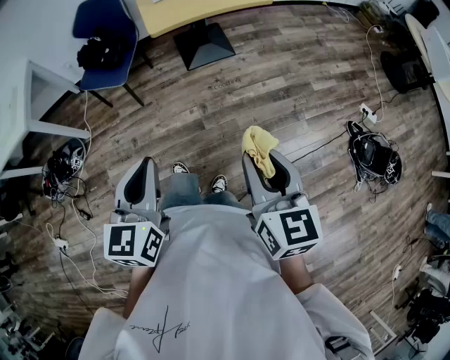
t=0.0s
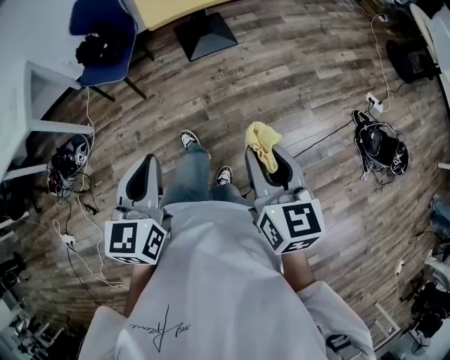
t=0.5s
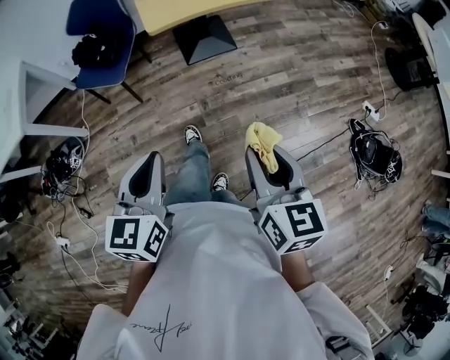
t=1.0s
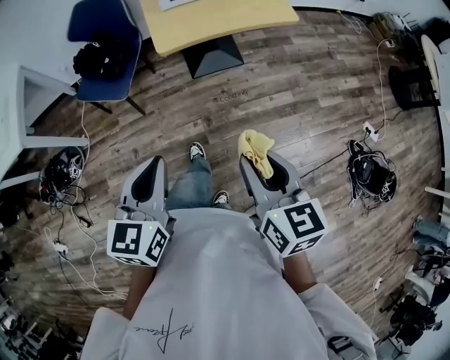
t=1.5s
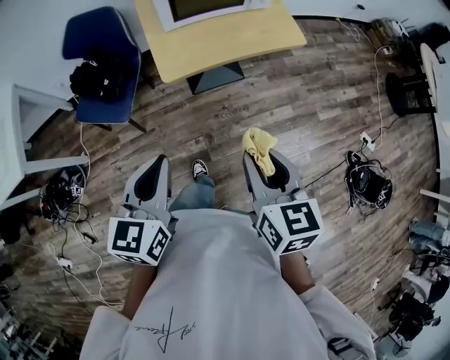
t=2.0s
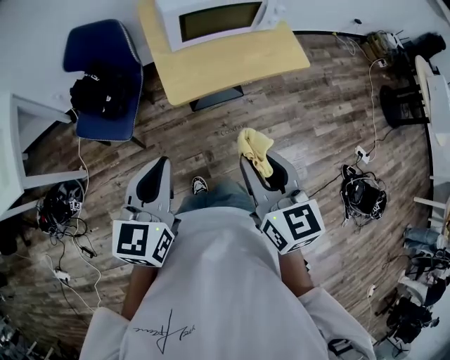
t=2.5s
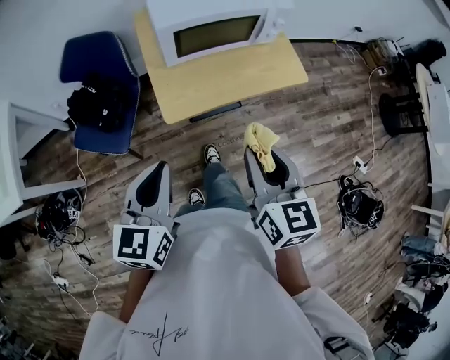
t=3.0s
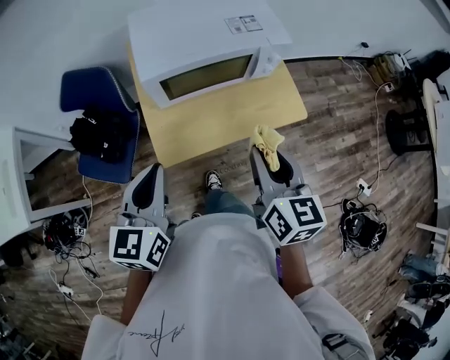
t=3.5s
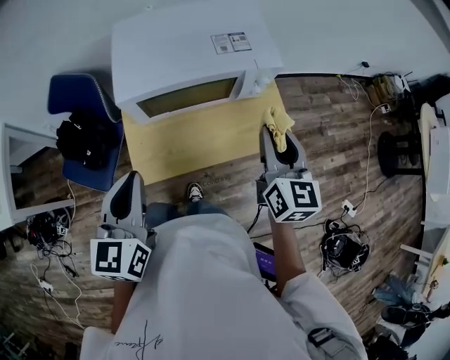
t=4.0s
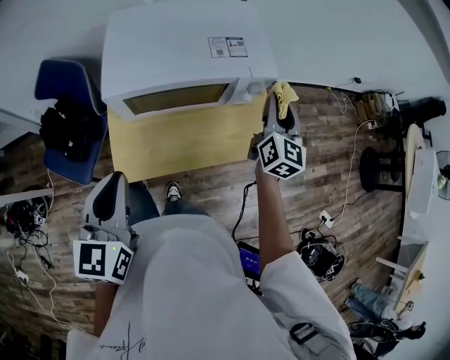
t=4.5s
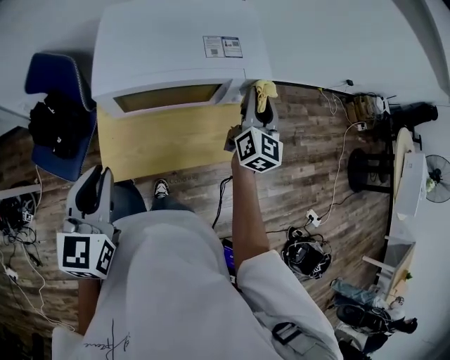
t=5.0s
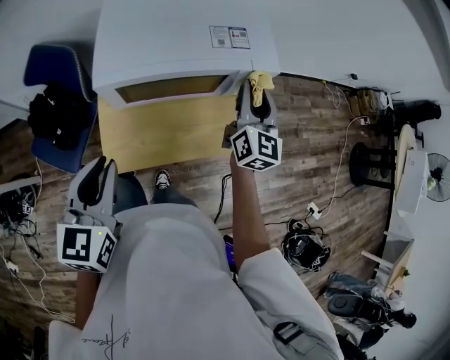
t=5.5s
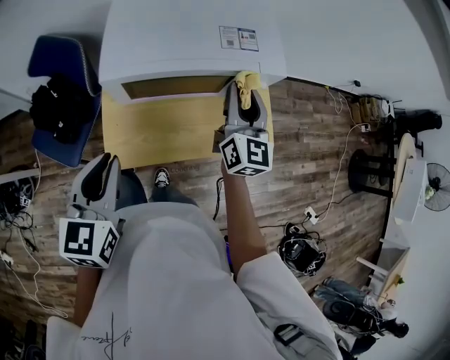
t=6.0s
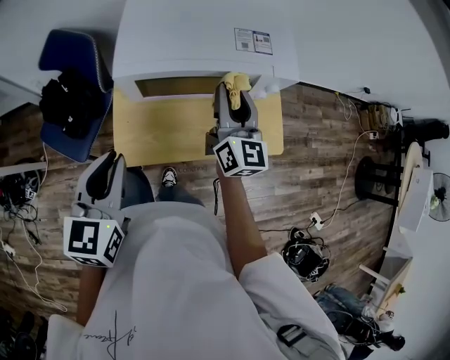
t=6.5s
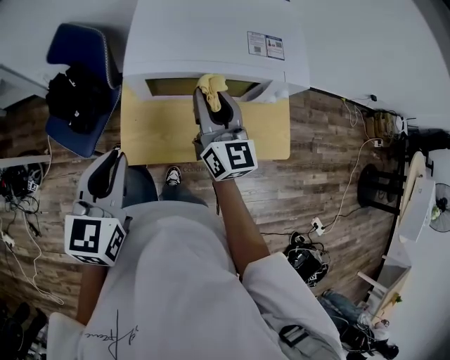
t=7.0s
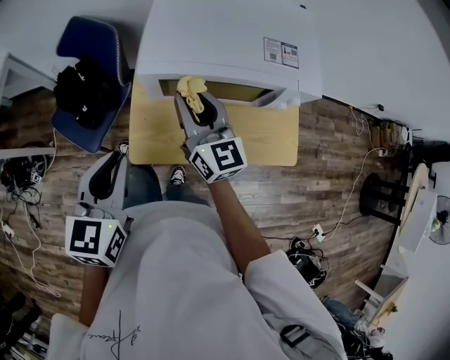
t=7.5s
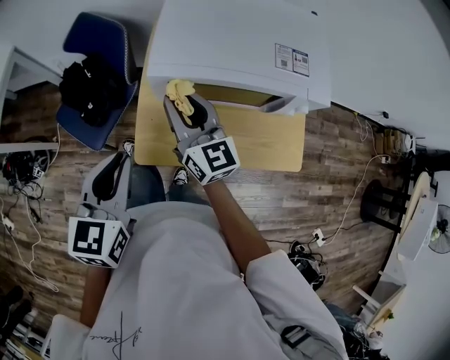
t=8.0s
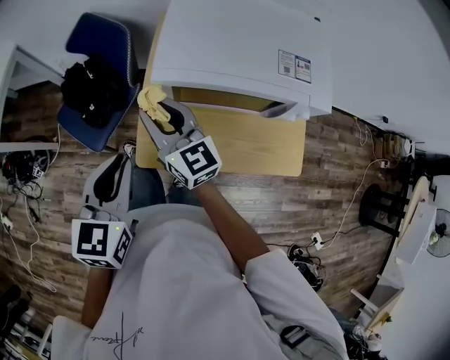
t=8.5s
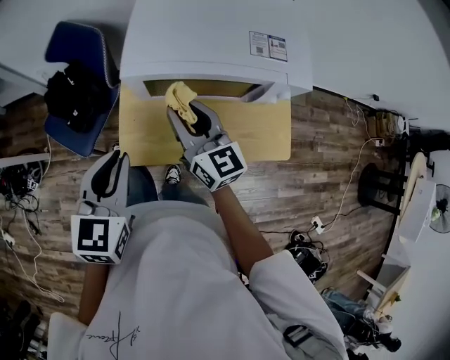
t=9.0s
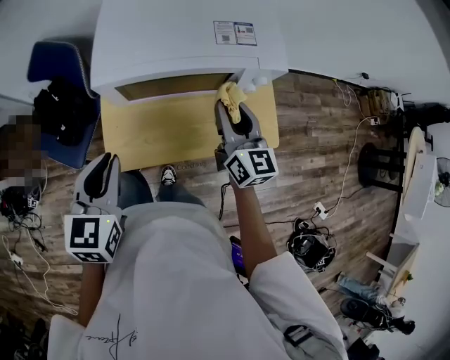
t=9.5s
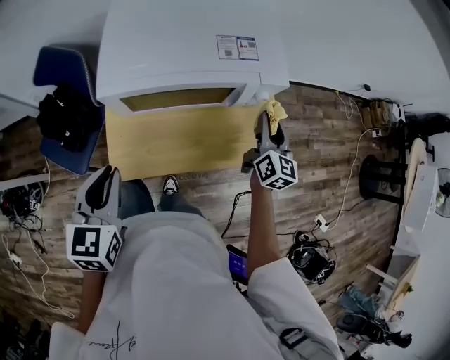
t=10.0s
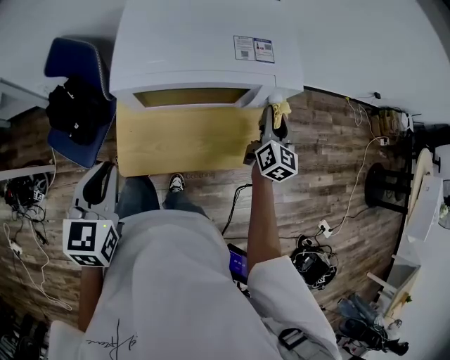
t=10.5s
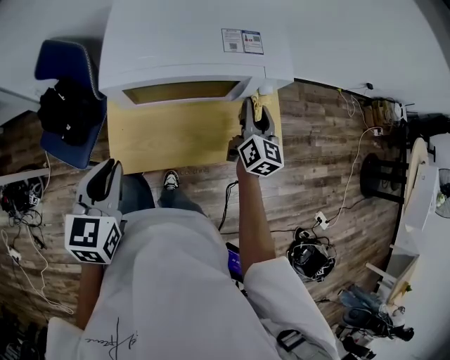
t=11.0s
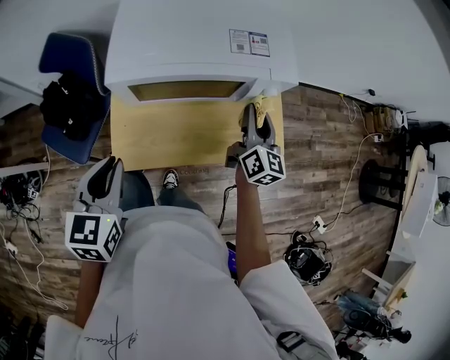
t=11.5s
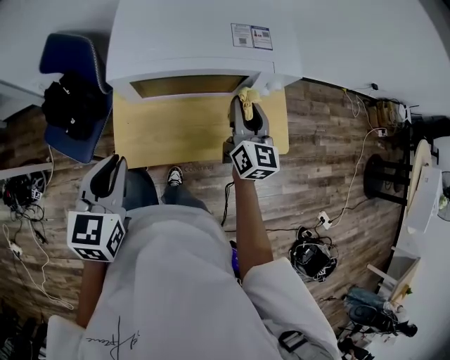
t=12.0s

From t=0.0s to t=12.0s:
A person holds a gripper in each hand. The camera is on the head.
From t=0.0s to t=2.0s: Both grippers travel together forward, approximately 30 cm.
From t=2.0s to t=4.0s: The two grippers go some 35 cm forward. The right gripper swivels some 20 degrees.
From t=4.0s to t=6.0s: The right gripper is displaced forward and to the left by roughly 15 cm.
From t=6.0s to t=8.0s: The right gripper moves to the left, about 25 cm, and swivels roughly 40 degrees; the left gripper goes roughly 5 cm to the left.
From t=8.0s to t=10.0s: The left gripper changes place by roughly 5 cm. The right gripper ends up some 35 cm from where it was, and changes its angle by roughly 40 degrees.
From t=10.0s to t=12.0s: The right gripper travels to the left by about 10 cm.

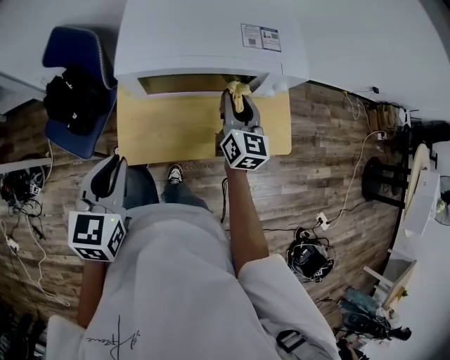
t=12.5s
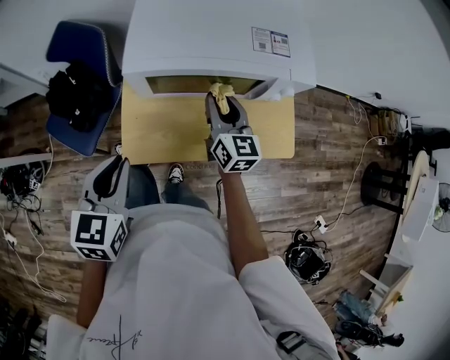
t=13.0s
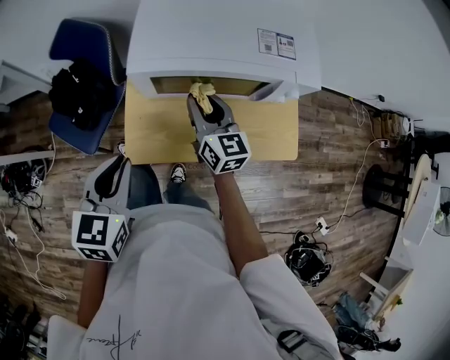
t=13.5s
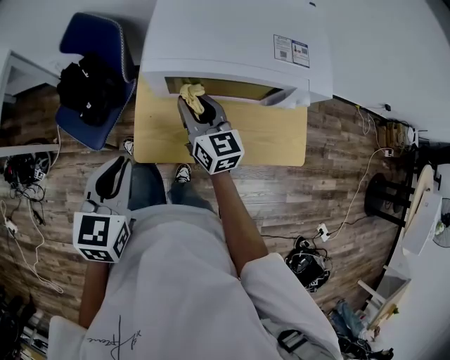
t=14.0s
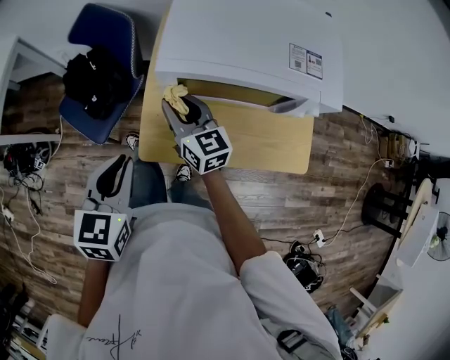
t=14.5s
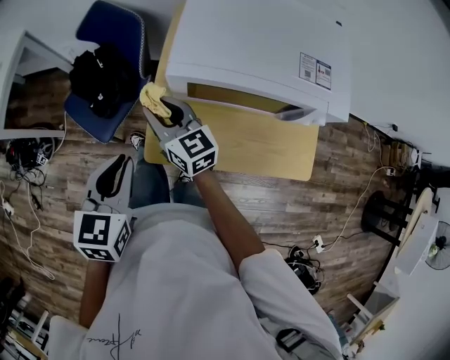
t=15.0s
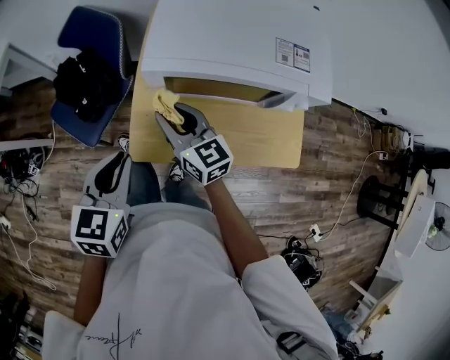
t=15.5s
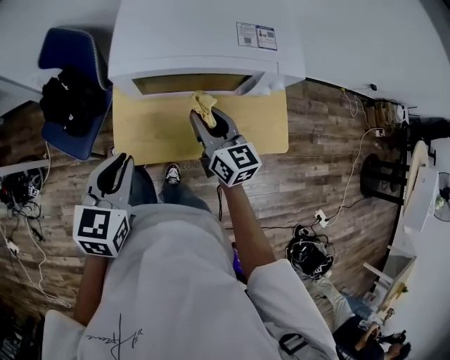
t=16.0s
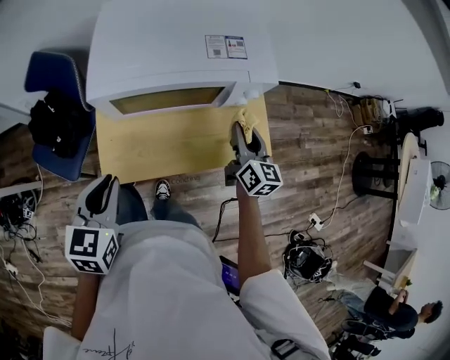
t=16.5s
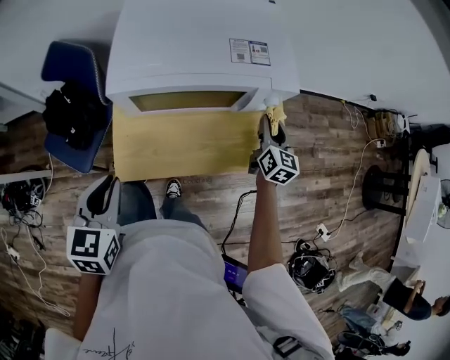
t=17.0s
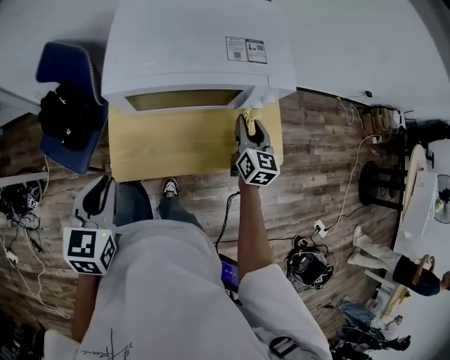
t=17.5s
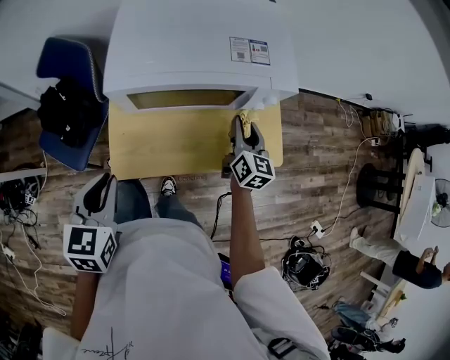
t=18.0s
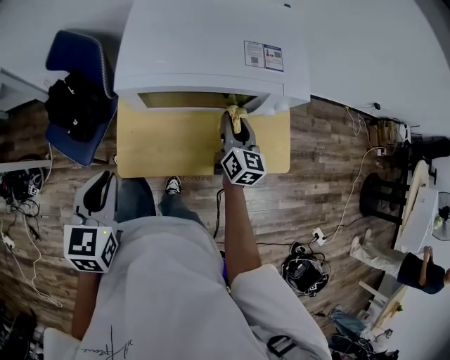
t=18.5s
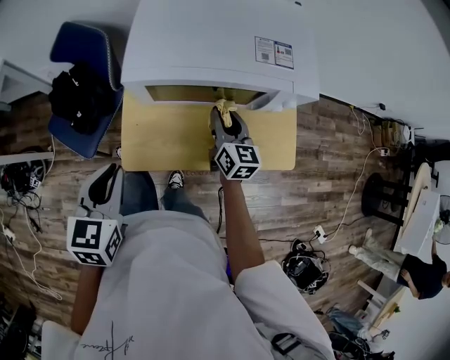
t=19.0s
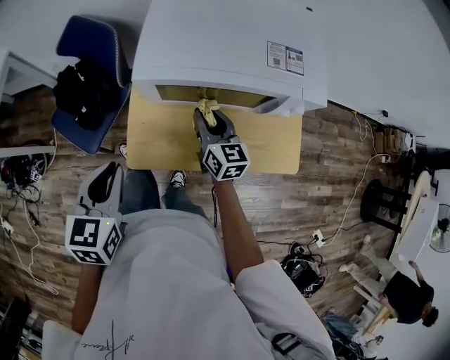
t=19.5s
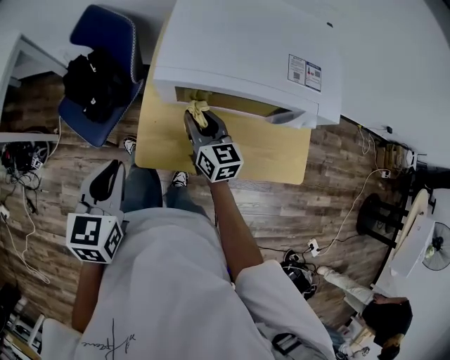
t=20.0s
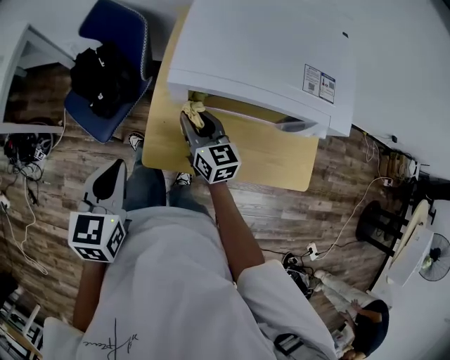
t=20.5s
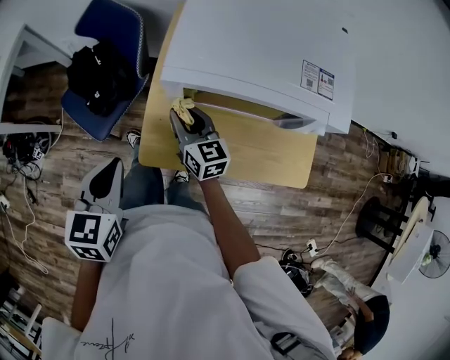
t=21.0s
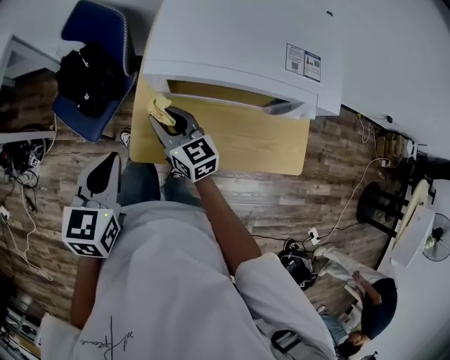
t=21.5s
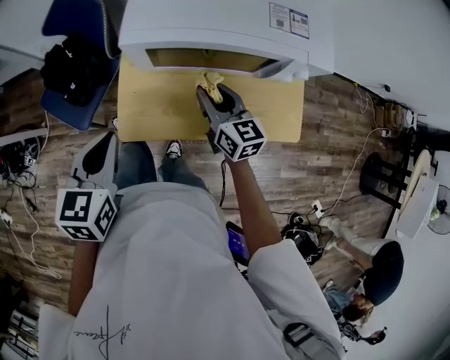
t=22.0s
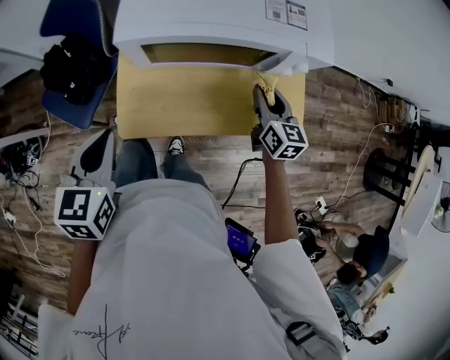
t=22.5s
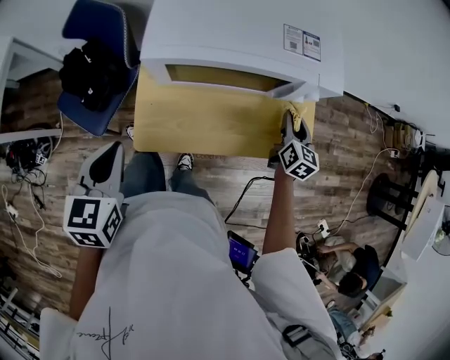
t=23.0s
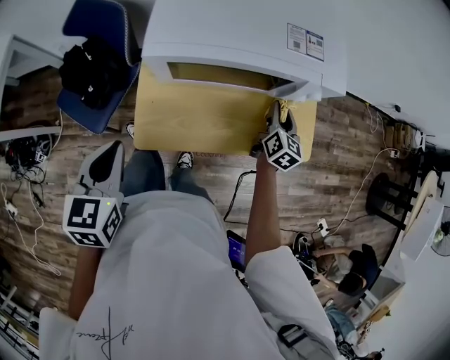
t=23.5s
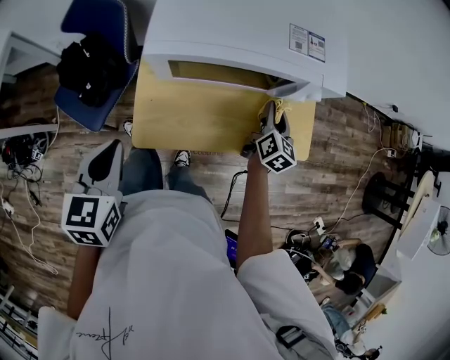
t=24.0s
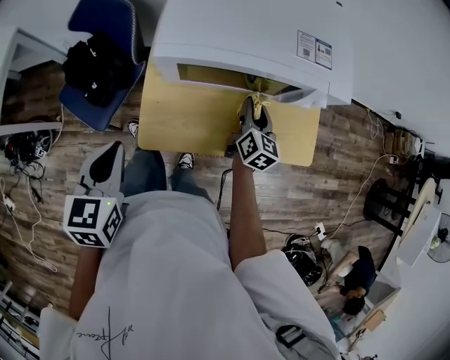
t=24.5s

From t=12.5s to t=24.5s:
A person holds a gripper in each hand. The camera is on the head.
From t=12.5s to t=14.5s: The left gripper shifts by about 5 cm. The right gripper moves to the left, approximately 25 cm, and swivels about 30 degrees.
From t=14.5s to t=16.5s: The right gripper changes place by about 35 cm, and turns by approximately 40 degrees, while the left gripper changes place by some 10 cm.
From t=16.5s to t=18.5s: The left gripper moves about 5 cm. The right gripper heads to the left, covering roughly 10 cm.
From t=18.5s to t=20.5s: The right gripper travels to the left by about 25 cm, and swivels some 30 degrees. The left gripper is displaced to the left by approximately 5 cm.
From t=20.5s to t=22.5s: The right gripper travels to the right by roughly 30 cm, and rotates some 20 degrees, while the left gripper travels to the right by roughly 5 cm.
From t=22.5s to t=24.5s: The right gripper travels to the left by some 10 cm.

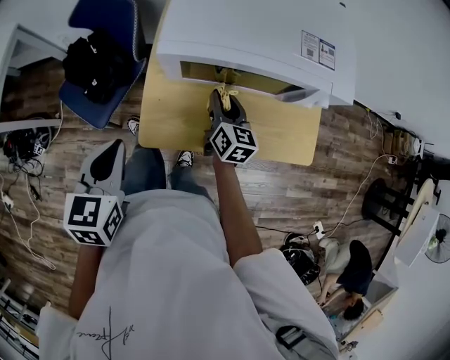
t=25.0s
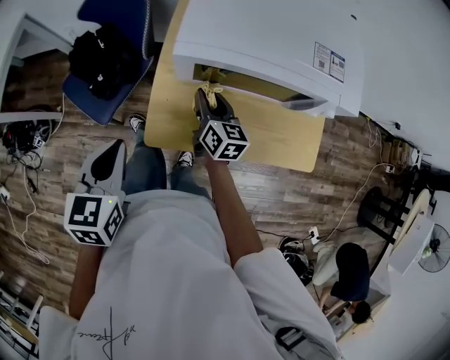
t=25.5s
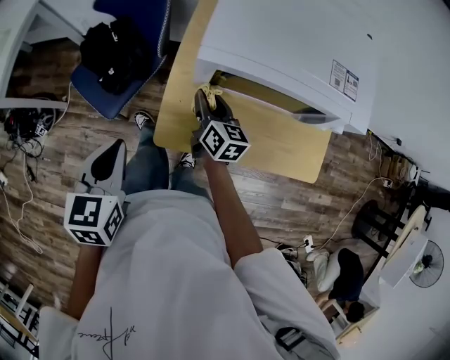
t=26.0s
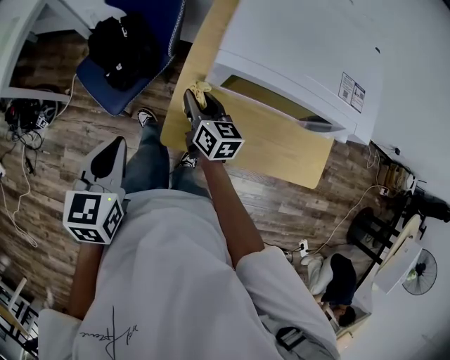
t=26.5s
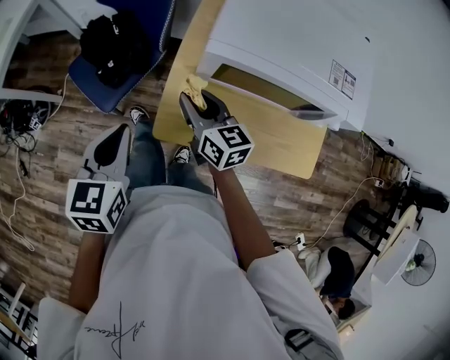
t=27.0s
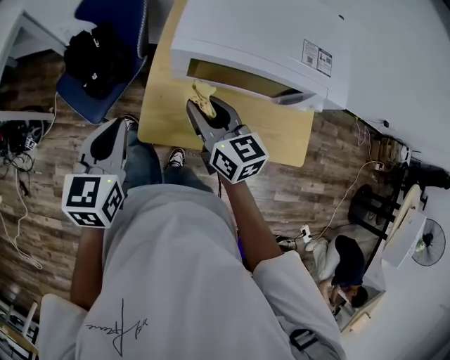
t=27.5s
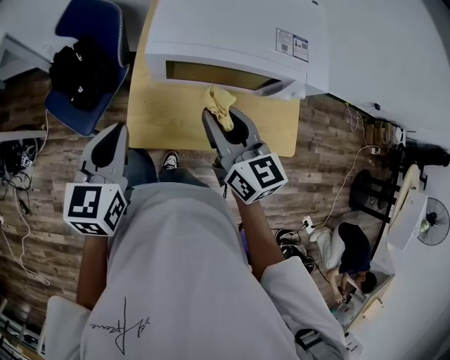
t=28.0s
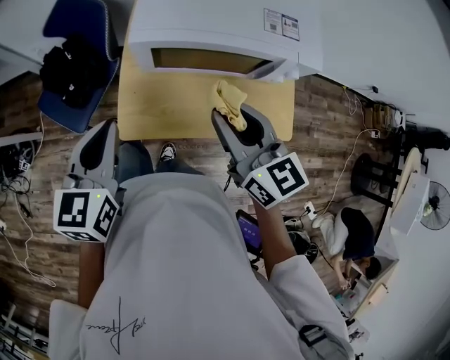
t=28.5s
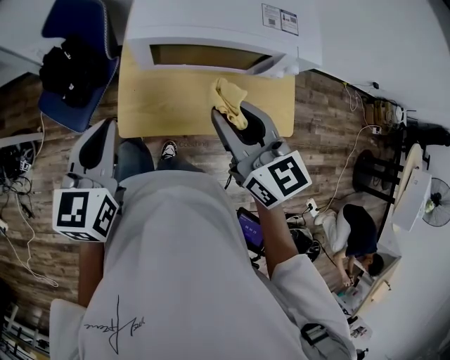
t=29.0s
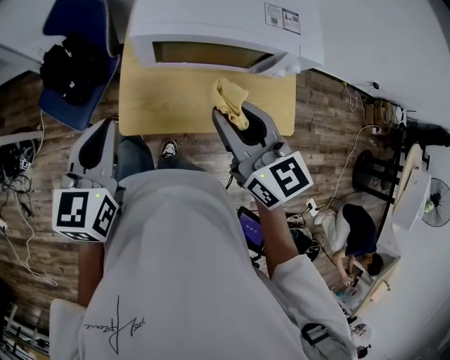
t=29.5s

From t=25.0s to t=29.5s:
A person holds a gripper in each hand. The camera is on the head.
From t=25.0s to t=27.0s: The left gripper heads to the left, covering approximately 5 cm; the right gripper moves to the left and upward, roughly 20 cm, and turns by roughly 30 degrees.
From t=27.0s to t=29.5s: The left gripper moves to the right and upward, some 10 cm. The right gripper shifts about 25 cm to the right, upward and backward.
